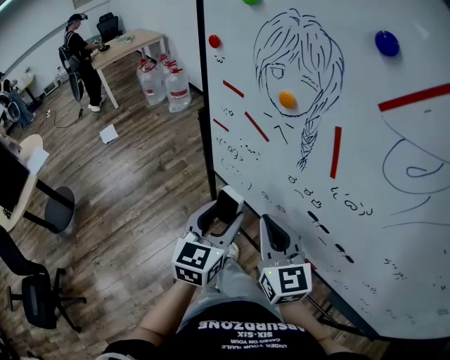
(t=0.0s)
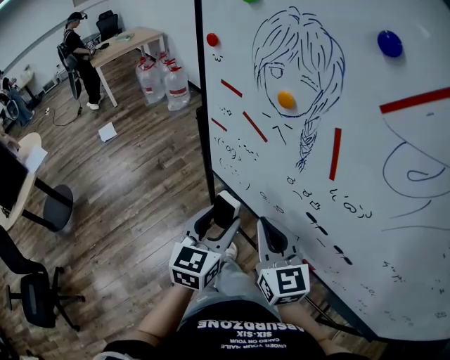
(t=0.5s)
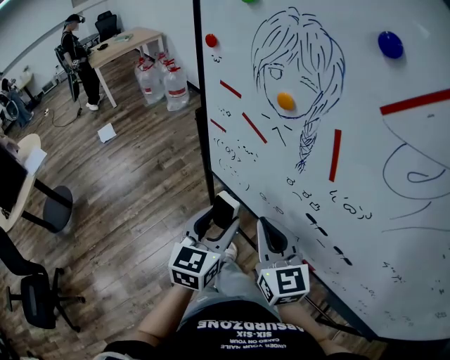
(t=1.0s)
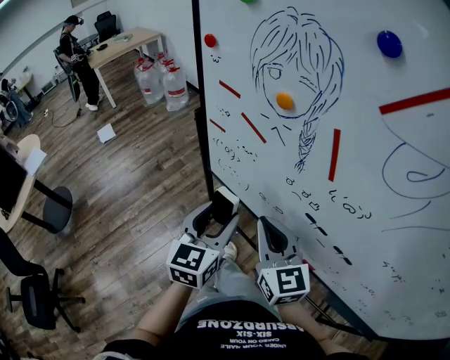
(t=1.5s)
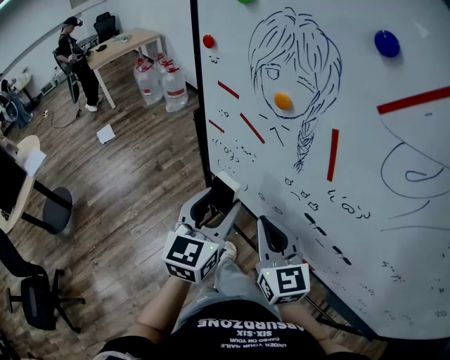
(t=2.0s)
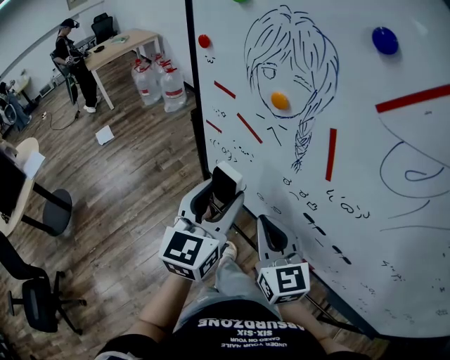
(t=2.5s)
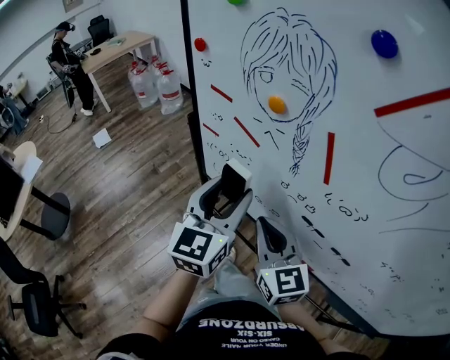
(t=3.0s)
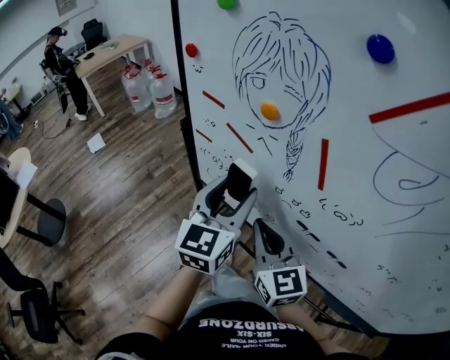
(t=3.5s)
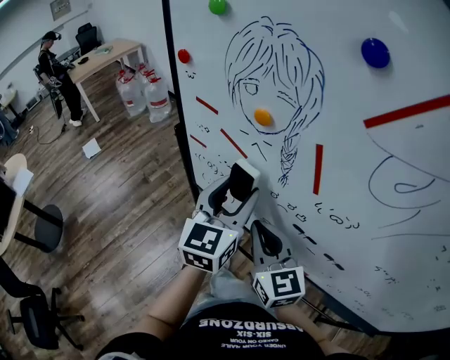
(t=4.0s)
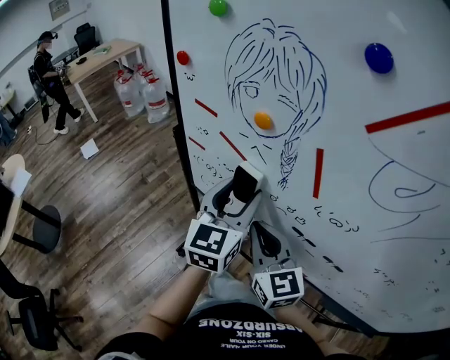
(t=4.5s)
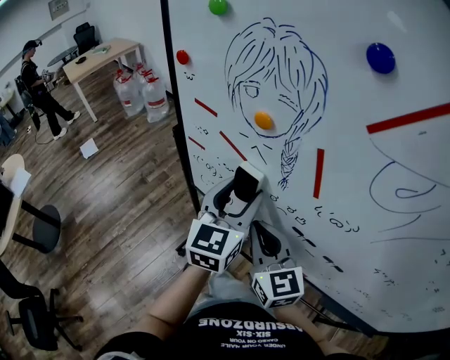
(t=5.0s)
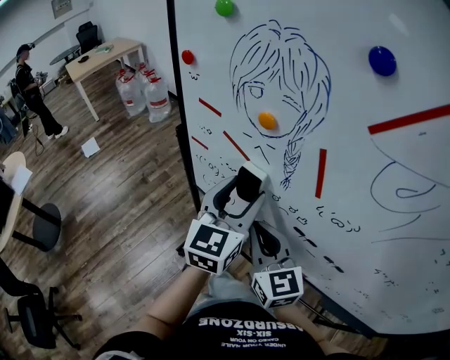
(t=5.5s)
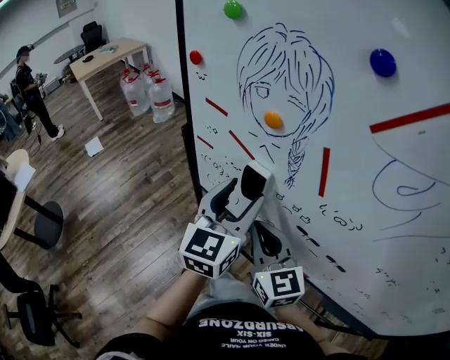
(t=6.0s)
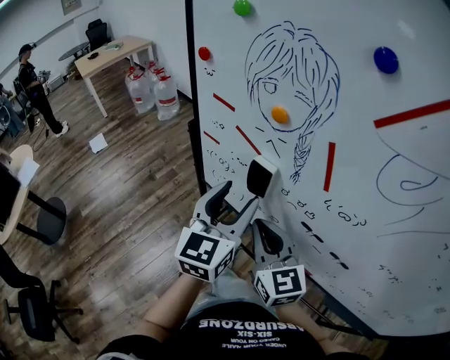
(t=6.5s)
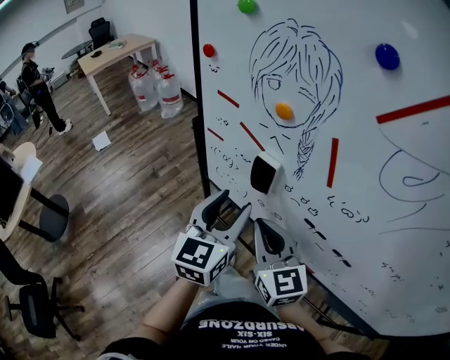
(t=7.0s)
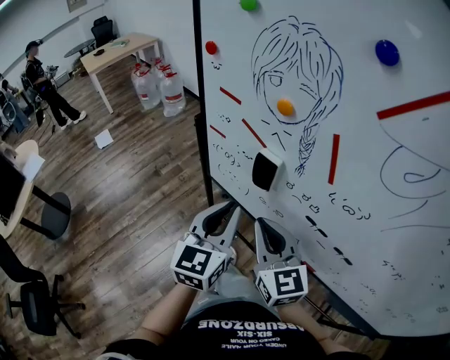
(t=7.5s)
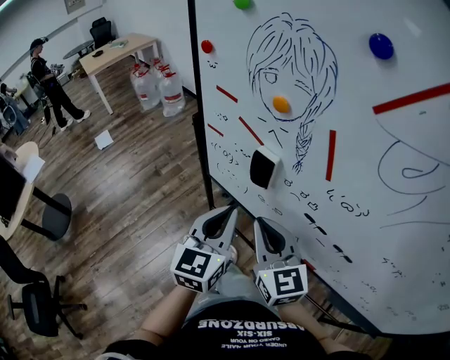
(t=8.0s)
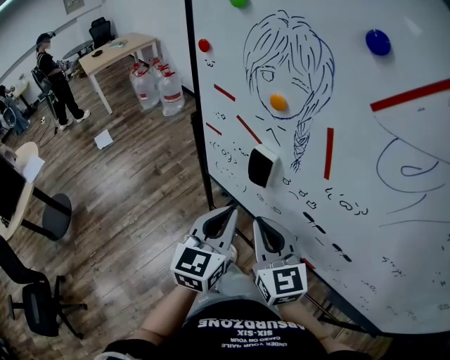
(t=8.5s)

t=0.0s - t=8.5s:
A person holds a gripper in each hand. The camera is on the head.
t=0.0s - t=2.0s: The grippers move only a little.
t=2.0s - t=4.0s: The left gripper shifts roughly 10 cm to the right and forward.
t=4.0s - t=6.5s: The grippers make only small movements.
t=6.5s - t=8.5s: The left gripper travels downward by roughly 5 cm, and closes its fingers.

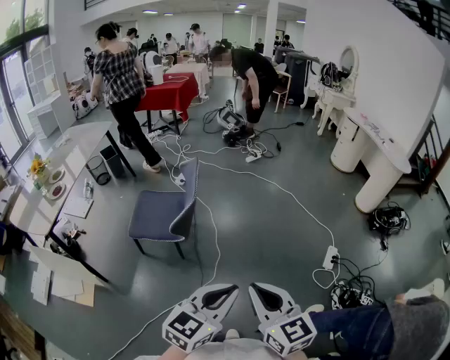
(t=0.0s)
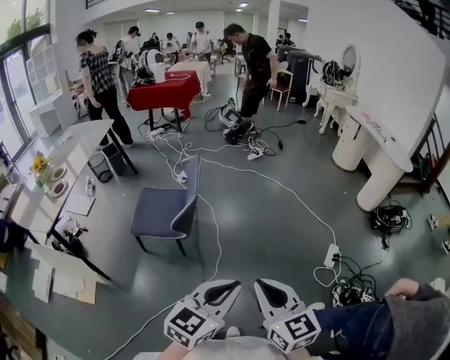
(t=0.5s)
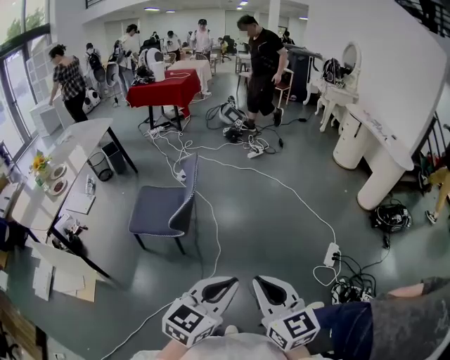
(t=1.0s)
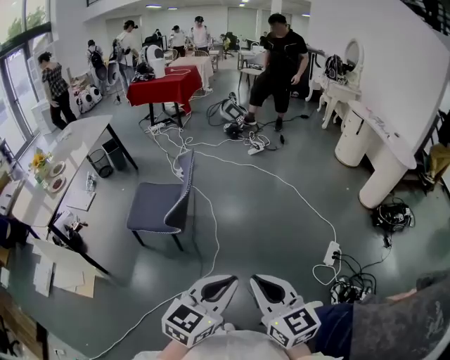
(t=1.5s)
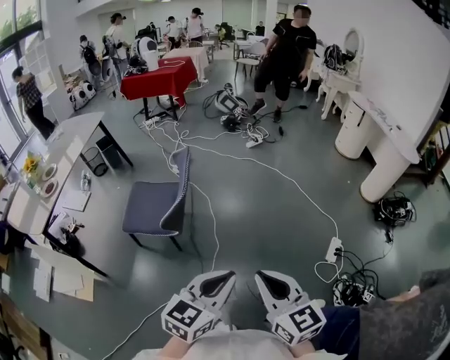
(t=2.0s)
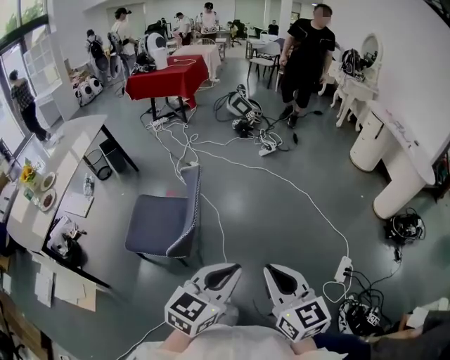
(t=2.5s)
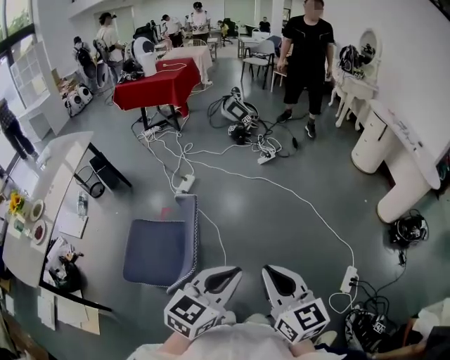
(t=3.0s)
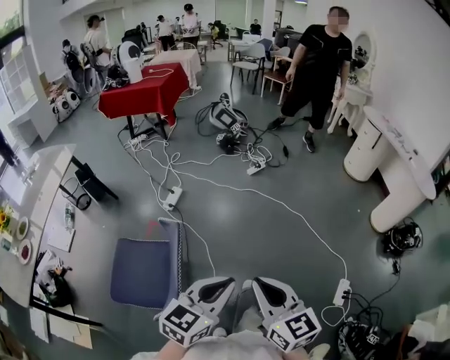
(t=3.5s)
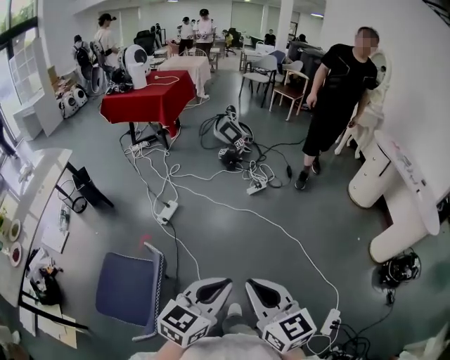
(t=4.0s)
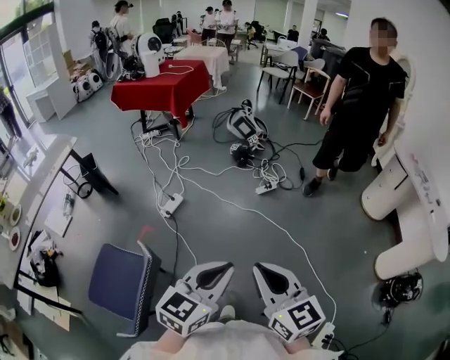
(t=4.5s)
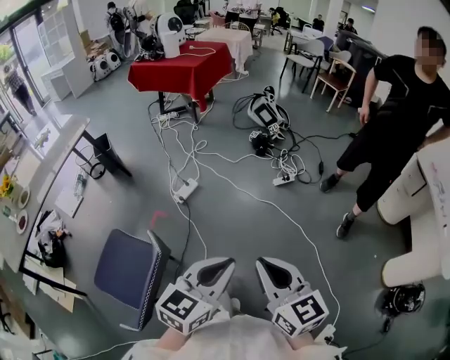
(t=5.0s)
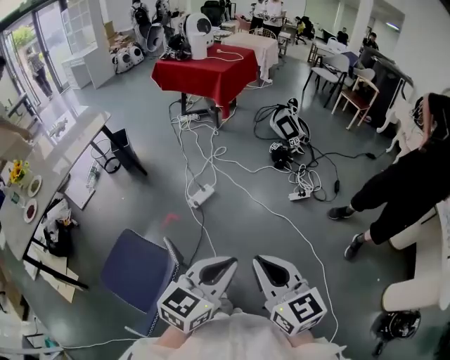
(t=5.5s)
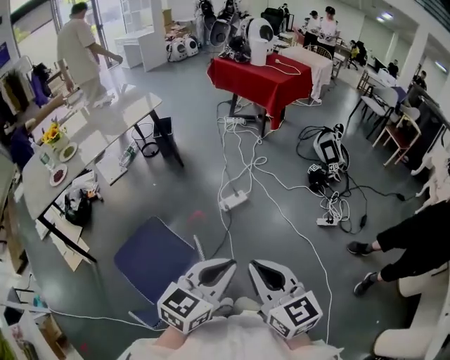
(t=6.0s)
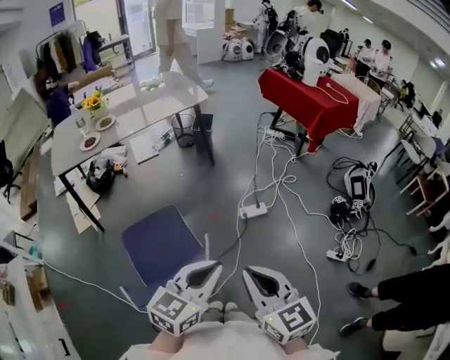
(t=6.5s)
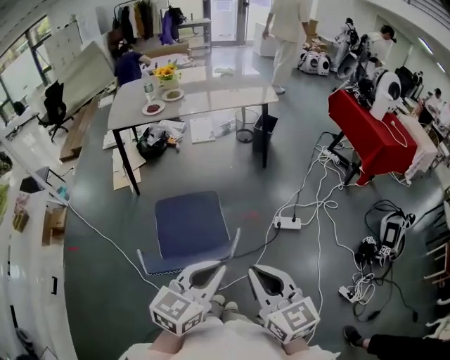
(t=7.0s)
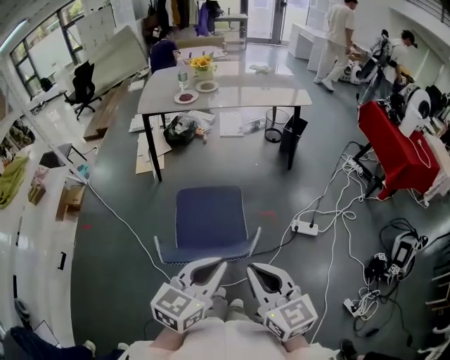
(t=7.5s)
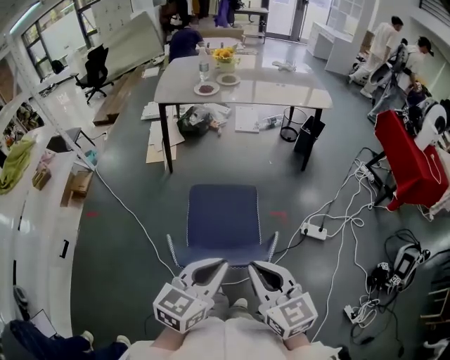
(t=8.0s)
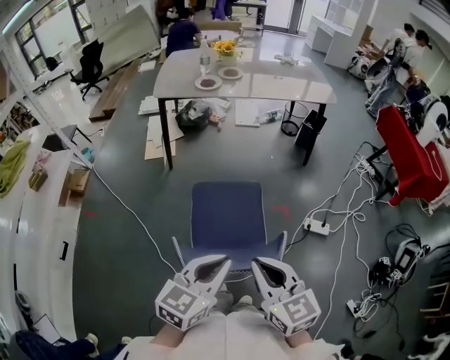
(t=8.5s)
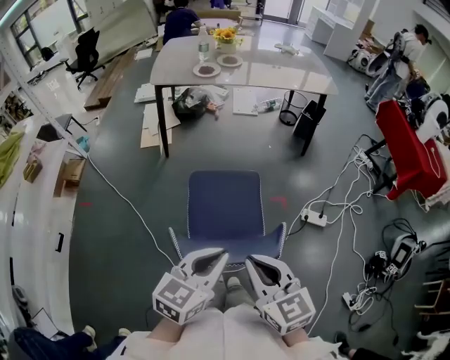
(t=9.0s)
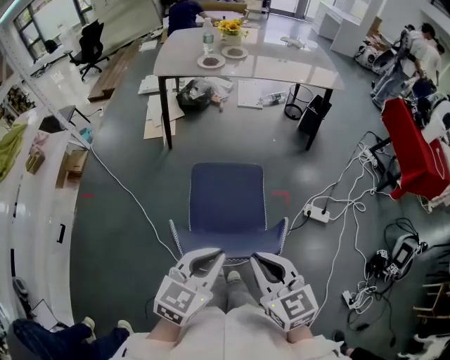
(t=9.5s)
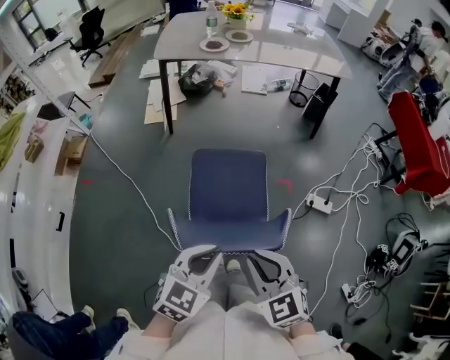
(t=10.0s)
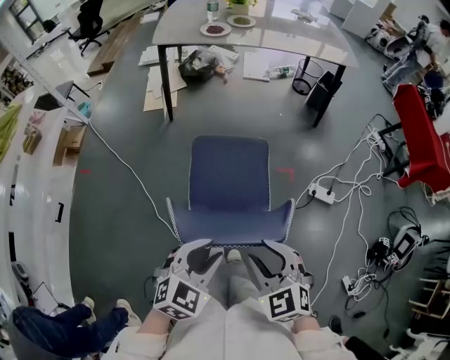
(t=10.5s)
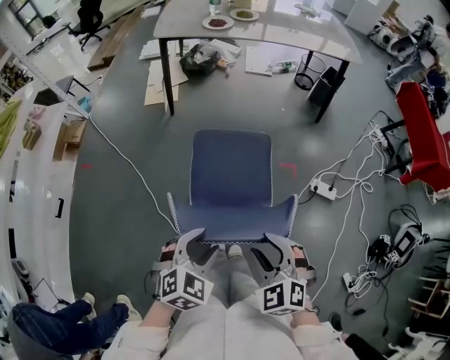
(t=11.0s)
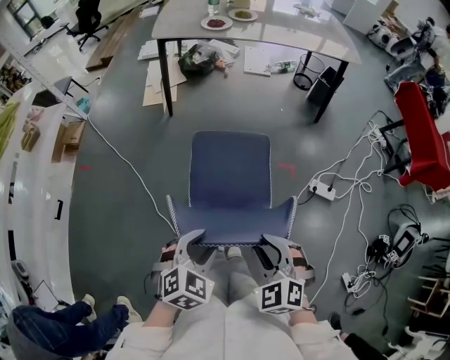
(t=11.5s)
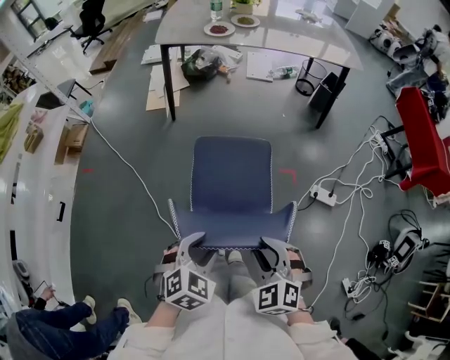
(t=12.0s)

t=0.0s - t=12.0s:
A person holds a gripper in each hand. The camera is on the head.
t=0.0s - t=2.0s: The grippers both shift forward by about 10 cm.
t=2.0s - t=4.0s: The two grippers travel together, forward, approximately 60 cm.
t=4.0s - t=6.0s: The right gripper ends up roughly 25 cm from where it was, and turns by about 40 degrees; the left gripper changes place by approximately 25 cm, and swivels some 40 degrees.
t=6.0s - t=8.0s: The left gripper shifts by about 20 cm, and turns by about 60 degrees, while the right gripper ends up some 20 cm from where it was, and changes its angle by about 50 degrees.
t=8.0s - t=10.0s: Both grippers travel together downward, about 10 cm. The right gripper changes its angle by about 30 degrees, while the left gripper swivels approximately 20 degrees.
t=10.0s - t=12.0s: Both grippers move downward, some 5 cm. The right gripper rotates roughly 20 degrees, and opens its fingers. The left gripper turns by some 20 degrees, and opens.

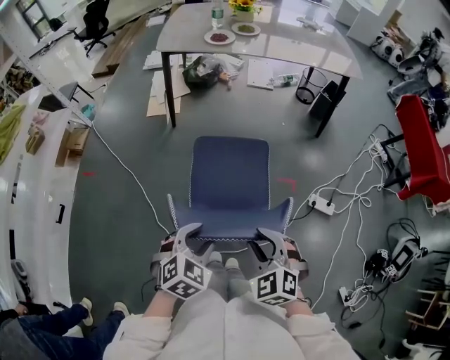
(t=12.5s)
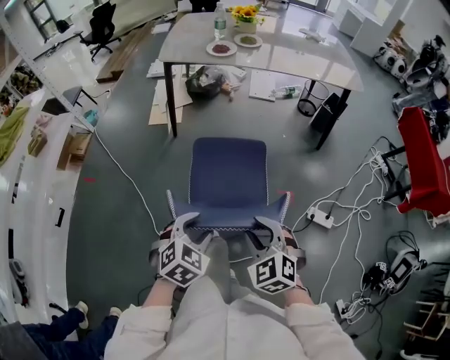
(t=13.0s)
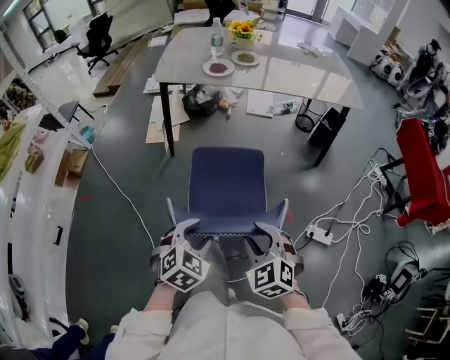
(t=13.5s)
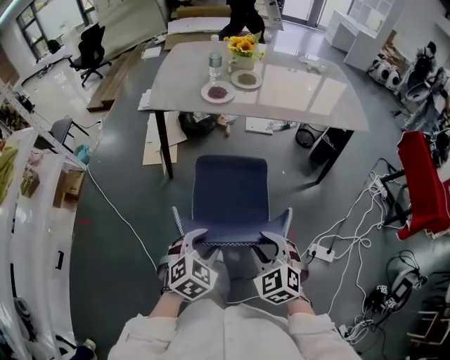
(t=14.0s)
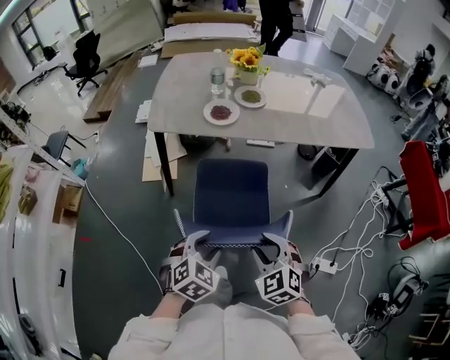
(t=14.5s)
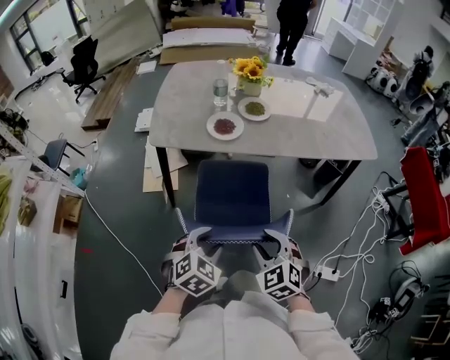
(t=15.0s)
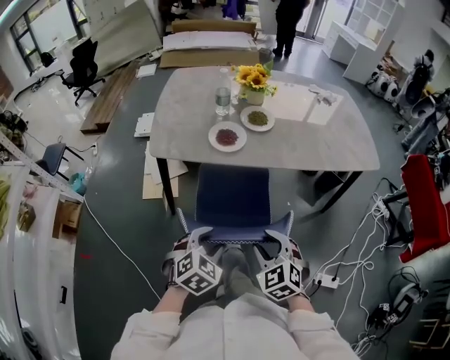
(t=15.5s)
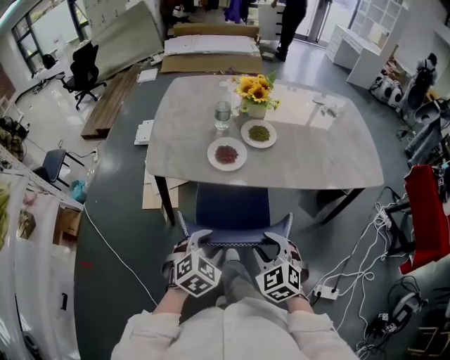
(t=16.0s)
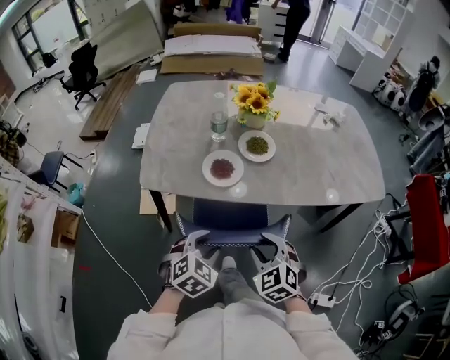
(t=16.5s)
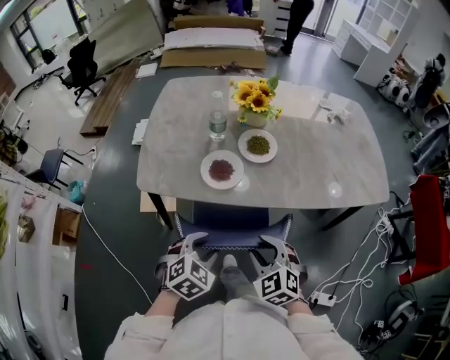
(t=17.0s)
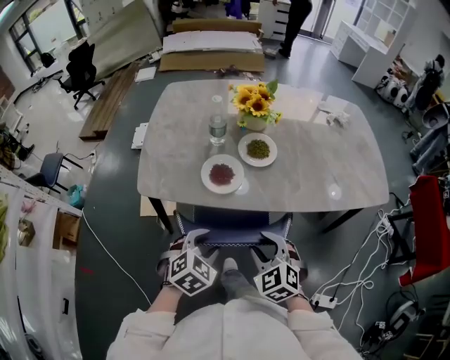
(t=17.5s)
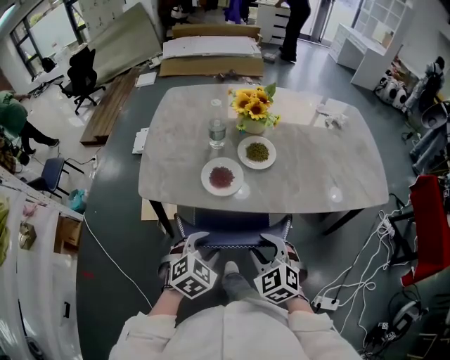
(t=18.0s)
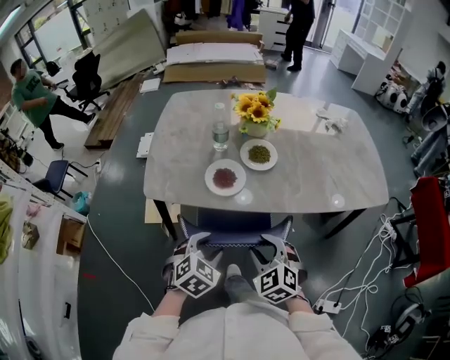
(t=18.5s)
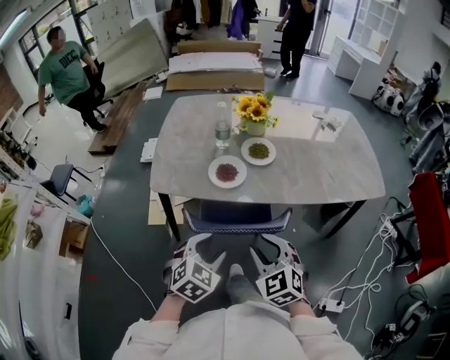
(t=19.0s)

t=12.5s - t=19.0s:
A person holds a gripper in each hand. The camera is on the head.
t=12.5s - t=14.5s: Both grippers travel together forward, some 40 cm.
t=14.5s - t=17.0s: The grippers both shift forward by about 25 cm.
t=17.0s - t=19.0s: The left gripper moves backward, roughly 5 cm. The right gripper travels upward by roughly 5 cm.
